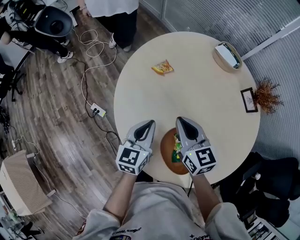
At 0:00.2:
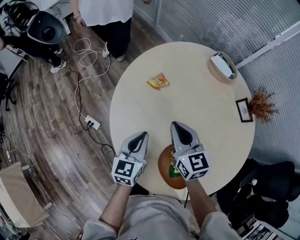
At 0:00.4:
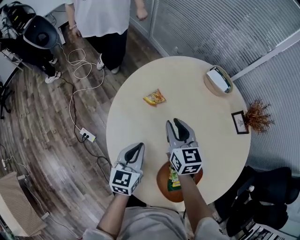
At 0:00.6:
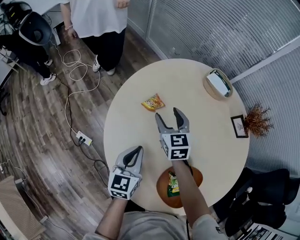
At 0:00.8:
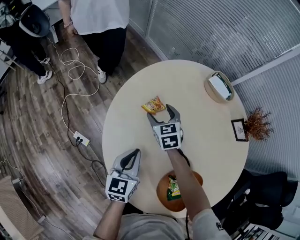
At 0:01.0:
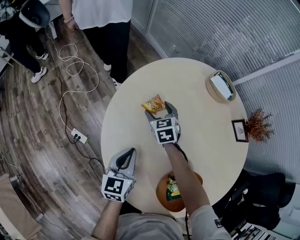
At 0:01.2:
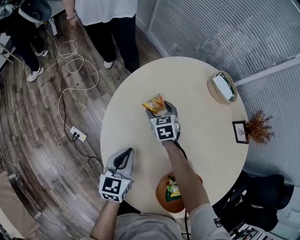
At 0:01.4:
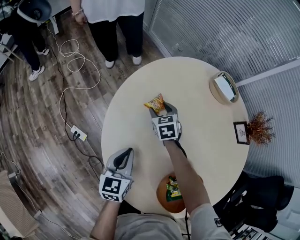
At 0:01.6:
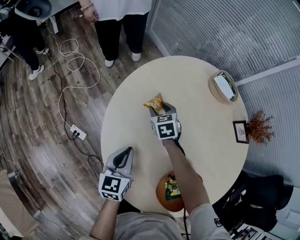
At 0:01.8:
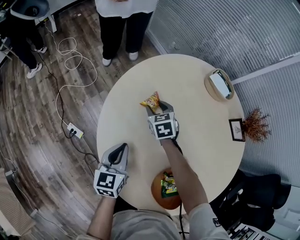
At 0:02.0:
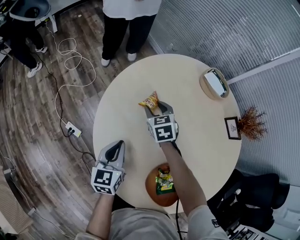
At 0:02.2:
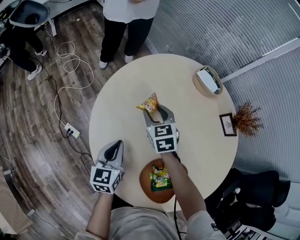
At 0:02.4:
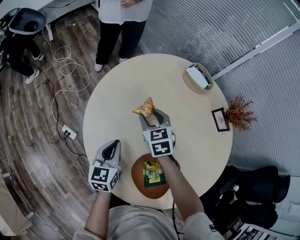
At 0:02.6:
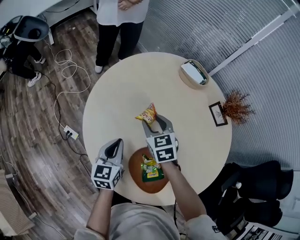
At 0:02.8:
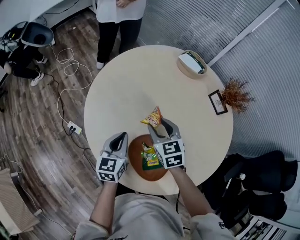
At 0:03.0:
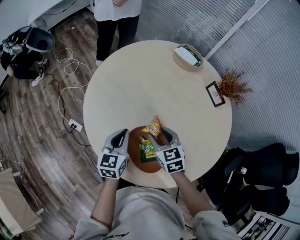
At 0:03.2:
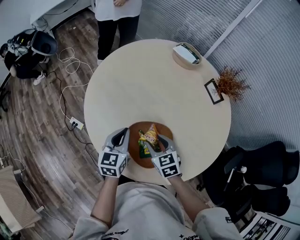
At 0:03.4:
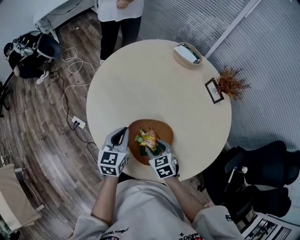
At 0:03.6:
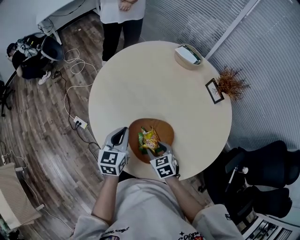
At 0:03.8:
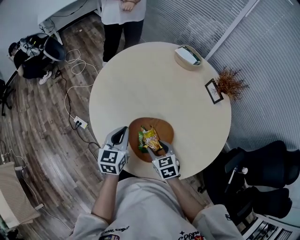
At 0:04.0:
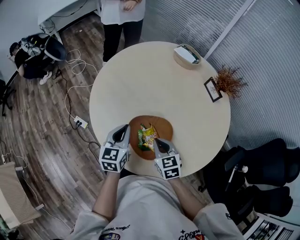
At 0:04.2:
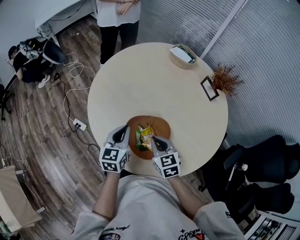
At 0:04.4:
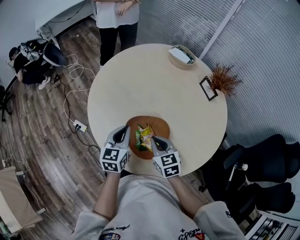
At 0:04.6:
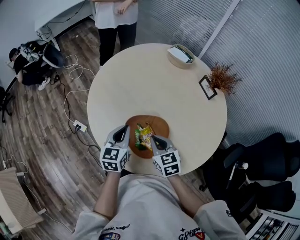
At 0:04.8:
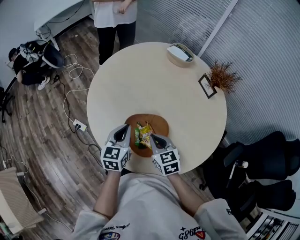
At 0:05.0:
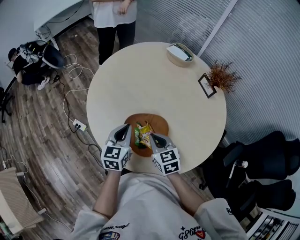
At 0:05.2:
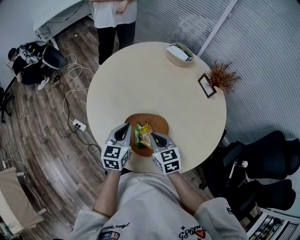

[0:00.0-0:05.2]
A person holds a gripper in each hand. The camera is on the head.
0:00.0 to 0:01.8: The left gripper moves to the left, forward and downward, some 15 cm. The right gripper is displaced forward and downward by about 30 cm, turns by approximately 30 degrees, and opens up.
0:01.8 to 0:03.4: The left gripper heads backward, to the right and upward, covering roughly 20 cm, while the right gripper travels backward by roughly 40 cm.
0:03.4 to 0:05.2: The right gripper moves upward, roughly 10 cm, and closes.

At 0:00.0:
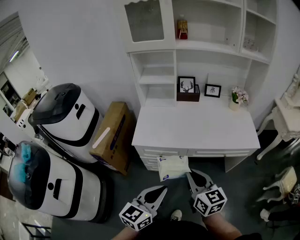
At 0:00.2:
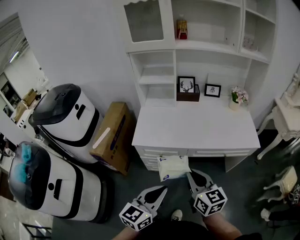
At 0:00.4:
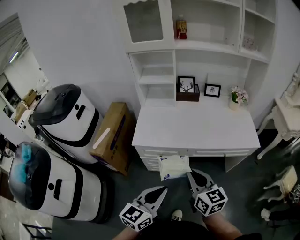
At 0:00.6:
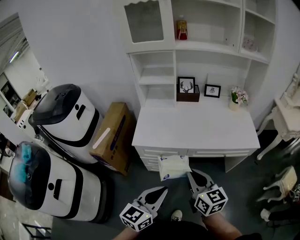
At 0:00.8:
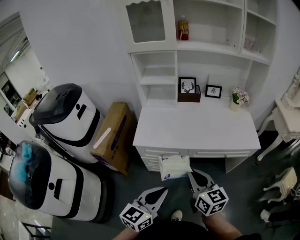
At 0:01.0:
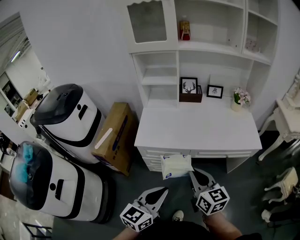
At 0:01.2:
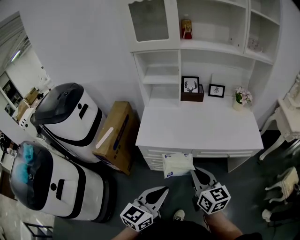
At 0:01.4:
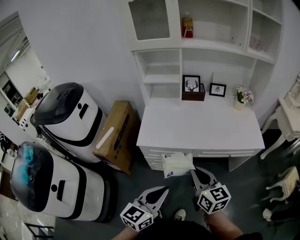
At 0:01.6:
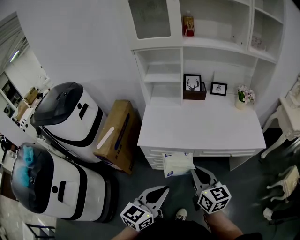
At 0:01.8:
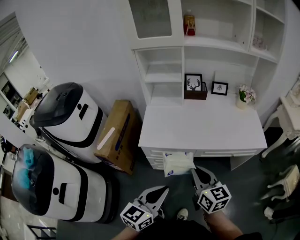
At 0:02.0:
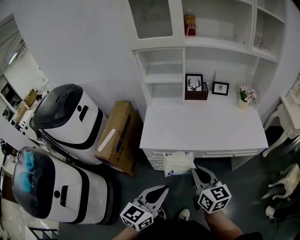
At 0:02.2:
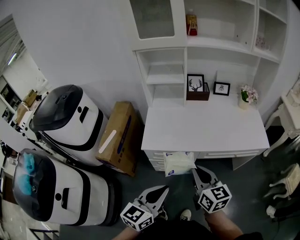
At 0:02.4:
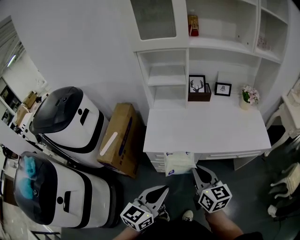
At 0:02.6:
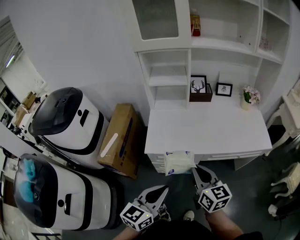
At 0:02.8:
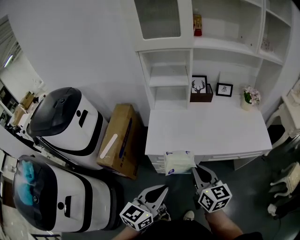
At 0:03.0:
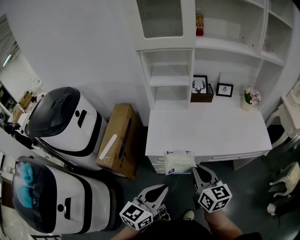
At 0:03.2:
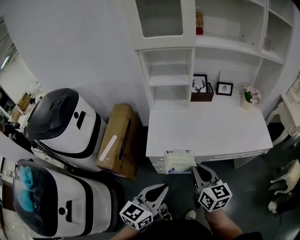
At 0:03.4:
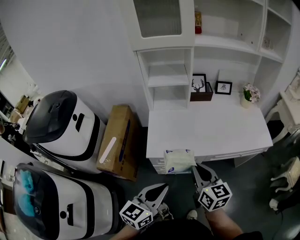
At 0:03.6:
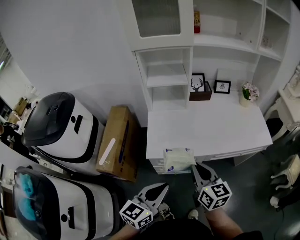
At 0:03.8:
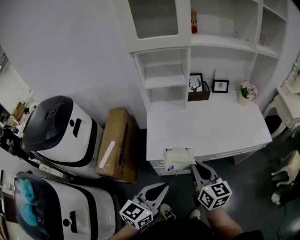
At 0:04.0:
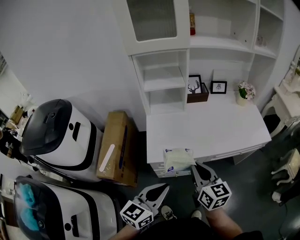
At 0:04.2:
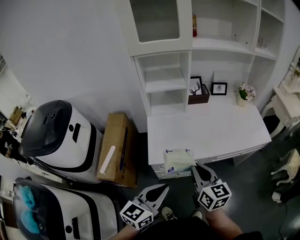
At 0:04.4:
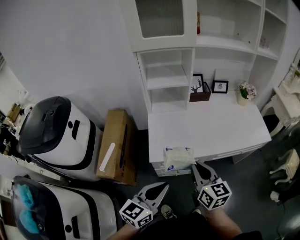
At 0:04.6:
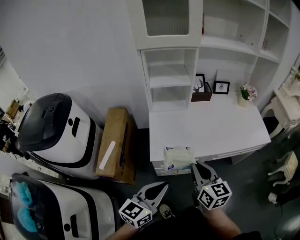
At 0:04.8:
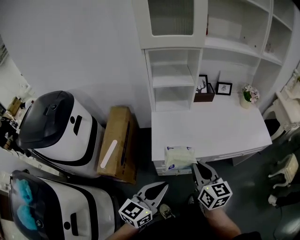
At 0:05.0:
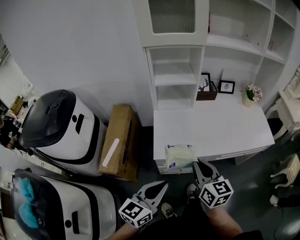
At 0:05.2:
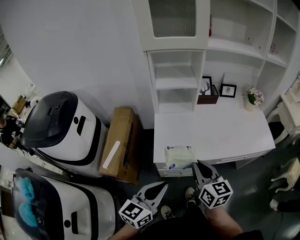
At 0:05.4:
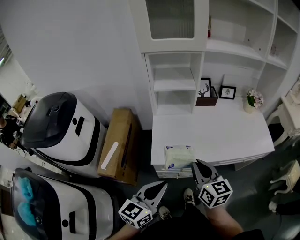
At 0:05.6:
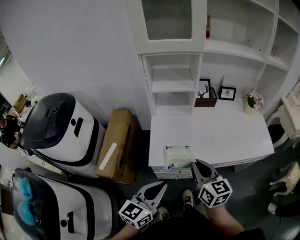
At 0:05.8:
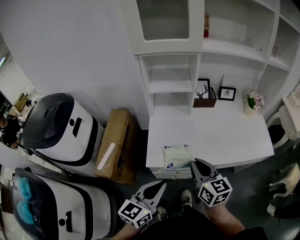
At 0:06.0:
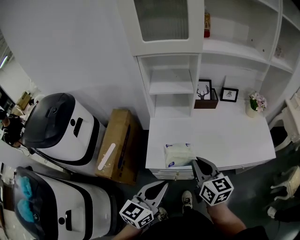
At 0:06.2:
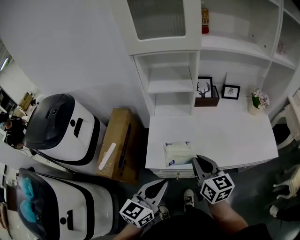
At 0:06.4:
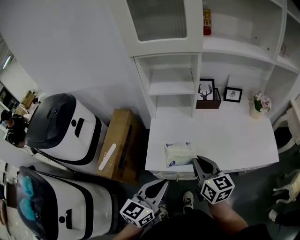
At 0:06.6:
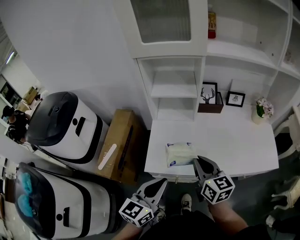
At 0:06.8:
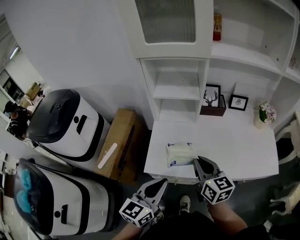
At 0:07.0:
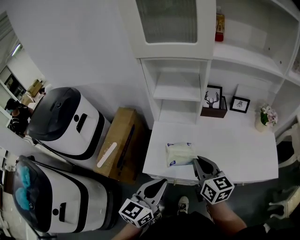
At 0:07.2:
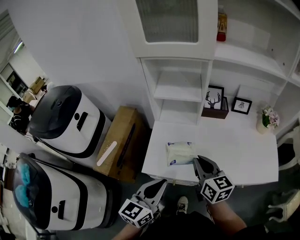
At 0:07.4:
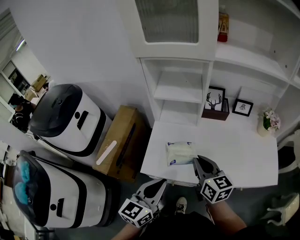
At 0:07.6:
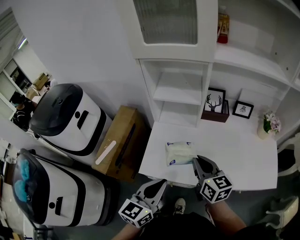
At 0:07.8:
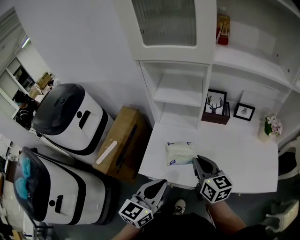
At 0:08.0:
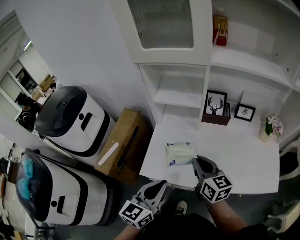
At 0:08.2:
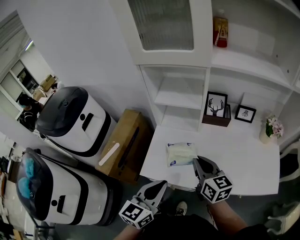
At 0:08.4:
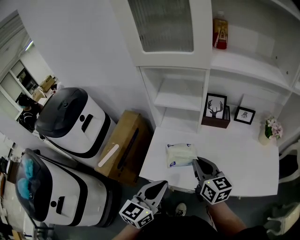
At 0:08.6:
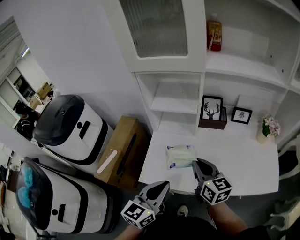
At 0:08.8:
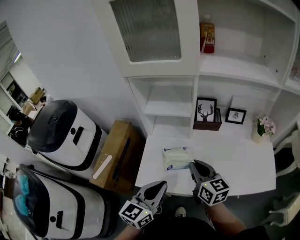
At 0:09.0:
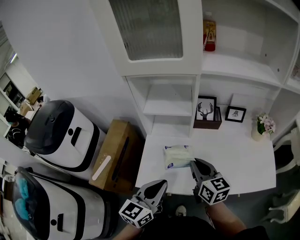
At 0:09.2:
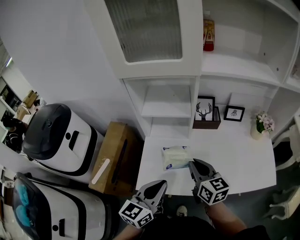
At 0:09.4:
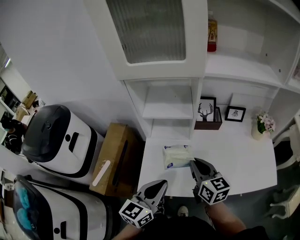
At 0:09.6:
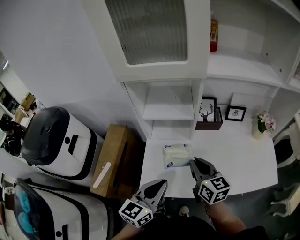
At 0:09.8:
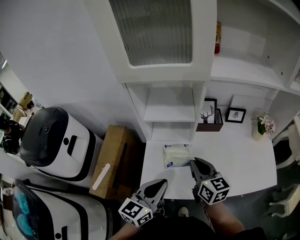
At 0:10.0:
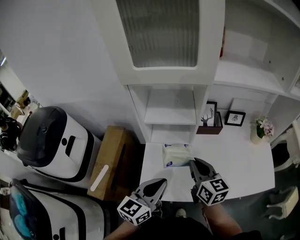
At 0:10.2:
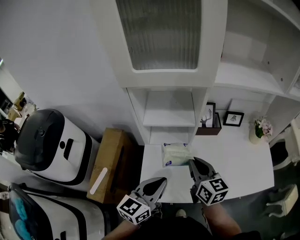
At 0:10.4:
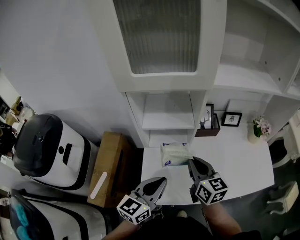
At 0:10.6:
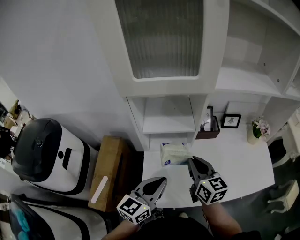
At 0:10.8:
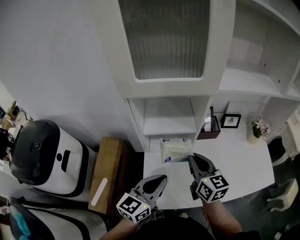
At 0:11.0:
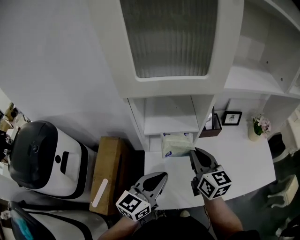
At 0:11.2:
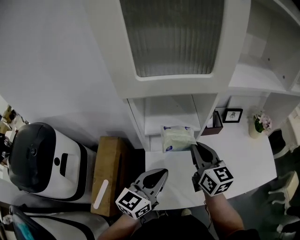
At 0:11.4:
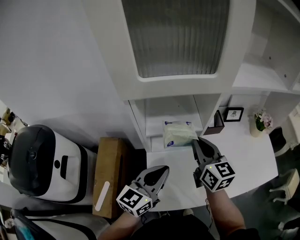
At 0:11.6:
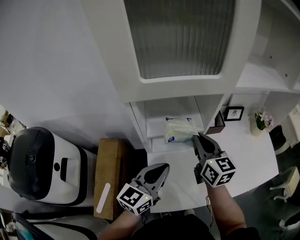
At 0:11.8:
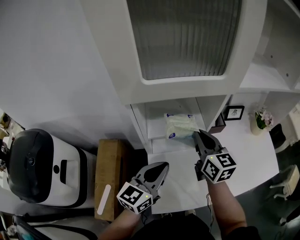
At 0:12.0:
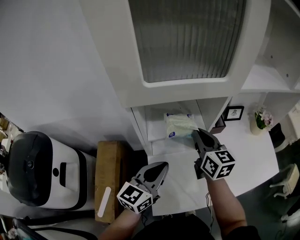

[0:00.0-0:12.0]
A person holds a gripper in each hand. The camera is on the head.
0:00.0 to 0:01.6: The grippers move only a little.
0:01.6 to 0:03.0: Both grippers move to the left and forward, some 10 cm.
0:03.0 to 0:04.4: Both grippers move to the left, some 5 cm.
0:04.4 to 0:06.0: The grippers both shift forward by roughly 10 cm.
0:06.0 to 0:07.6: The right gripper goes some 10 cm forward, while the left gripper is displaced forward and to the right by about 10 cm.
0:07.6 to 0:09.0: The left gripper moves forward, roughly 5 cm.
0:09.0 to 0:10.4: The right gripper shifts some 5 cm forward. Meanwhile the left gripper is displaced forward and to the left by about 10 cm.
0:10.4 to 0:12.0: Both grippers travel together forward and to the left, approximately 15 cm.

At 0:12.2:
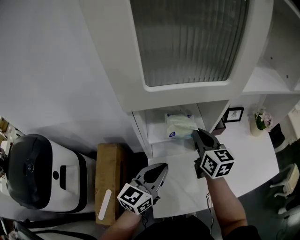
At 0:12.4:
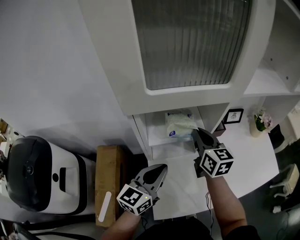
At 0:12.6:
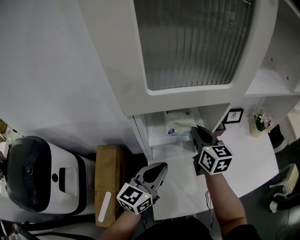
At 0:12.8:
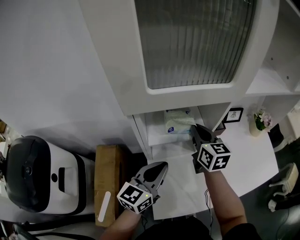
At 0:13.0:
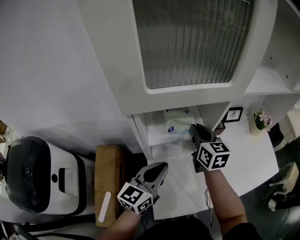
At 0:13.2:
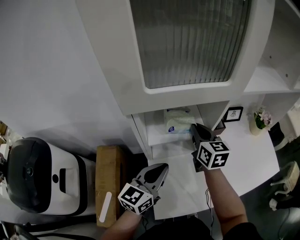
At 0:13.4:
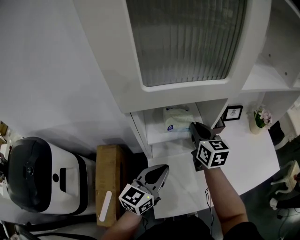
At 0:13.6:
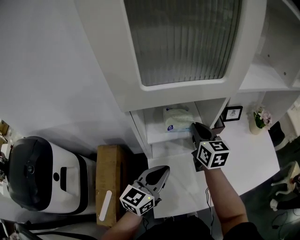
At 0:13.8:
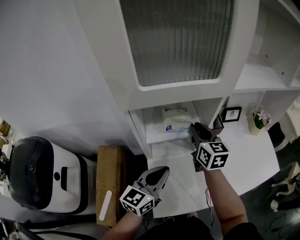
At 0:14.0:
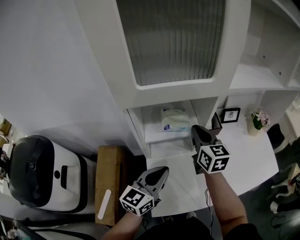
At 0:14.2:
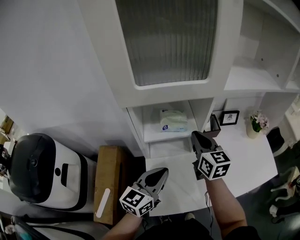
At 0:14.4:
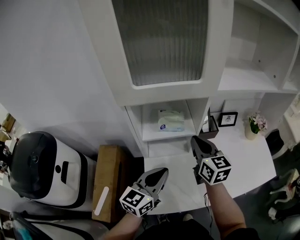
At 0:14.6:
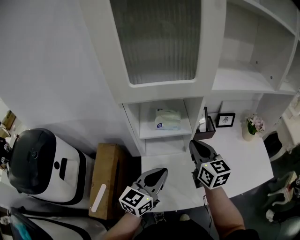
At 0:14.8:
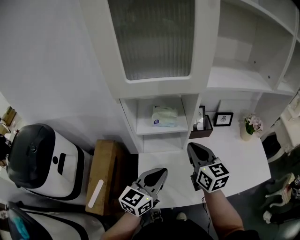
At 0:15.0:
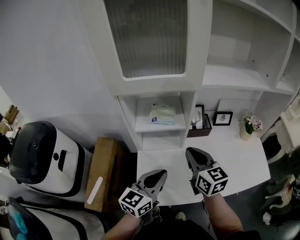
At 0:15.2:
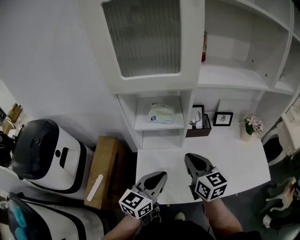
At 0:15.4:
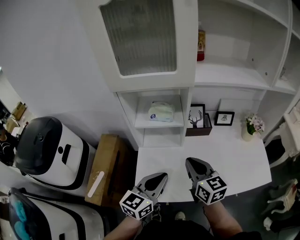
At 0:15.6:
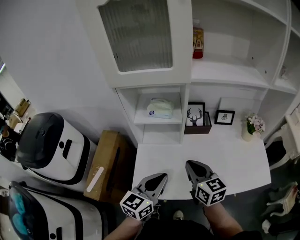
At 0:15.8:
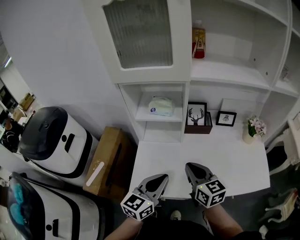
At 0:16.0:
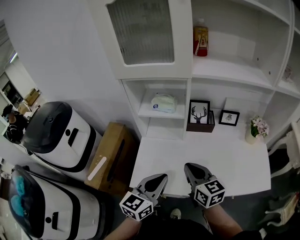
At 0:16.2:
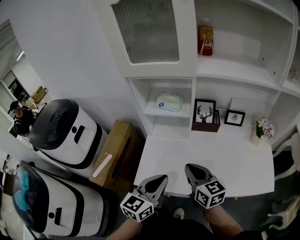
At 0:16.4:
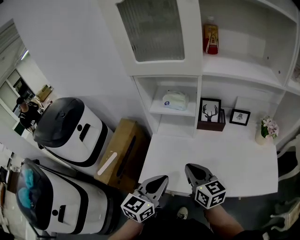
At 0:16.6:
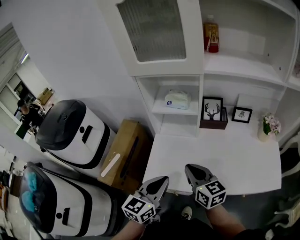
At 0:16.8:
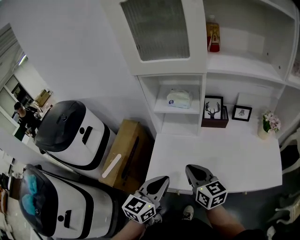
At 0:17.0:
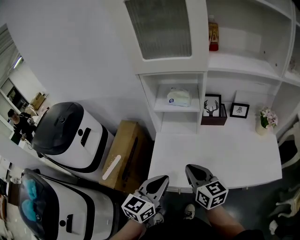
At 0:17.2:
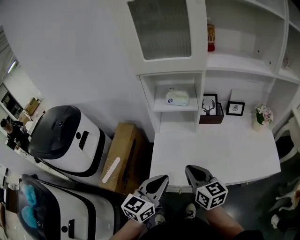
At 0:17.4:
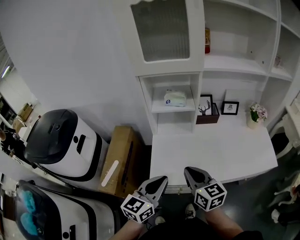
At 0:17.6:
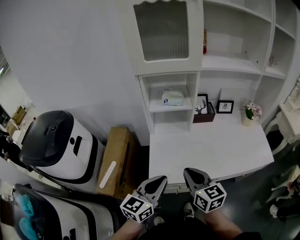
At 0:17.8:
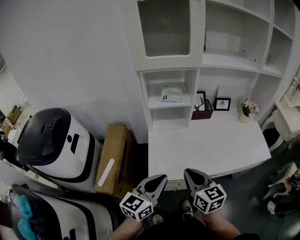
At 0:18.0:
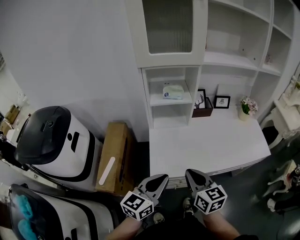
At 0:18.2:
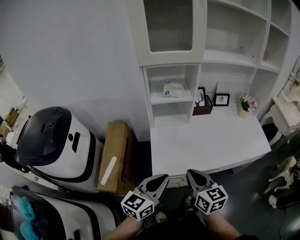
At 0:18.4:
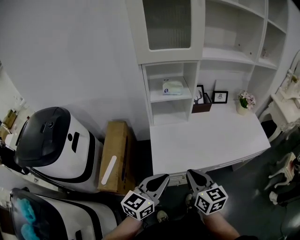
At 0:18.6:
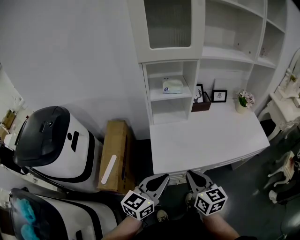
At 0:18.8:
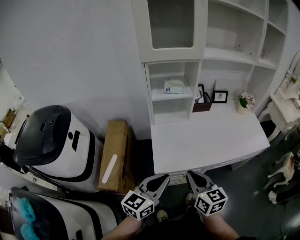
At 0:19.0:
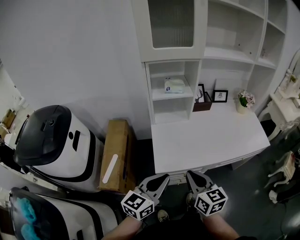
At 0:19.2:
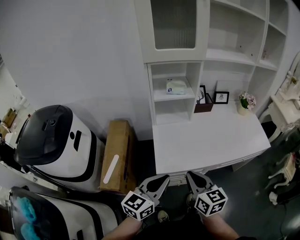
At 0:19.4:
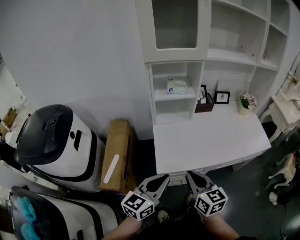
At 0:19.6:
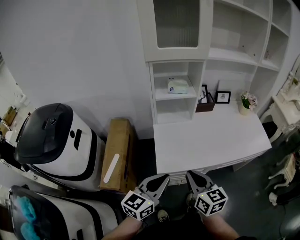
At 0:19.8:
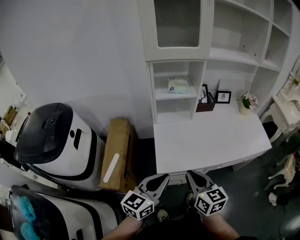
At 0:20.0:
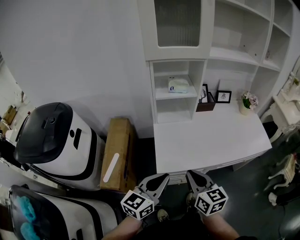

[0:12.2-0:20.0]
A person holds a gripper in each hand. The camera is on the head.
0:12.2 to 0:13.8: The grippers make only small movements.
0:13.8 to 0:15.4: The left gripper is displaced to the right and backward by approximately 15 cm. Meanwhile the right gripper shifts approximately 20 cm backward and to the right.
0:15.4 to 0:16.8: The grippers both shift backward by roughly 10 cm.
0:16.8 to 0:18.4: The left gripper travels to the left and backward by about 15 cm, and changes its angle by roughly 20 degrees. Meanwhile the right gripper heads backward and to the left, covering some 15 cm, and swivels roughly 20 degrees.
0:18.4 to 0:20.0: The grippers make only small movements.
